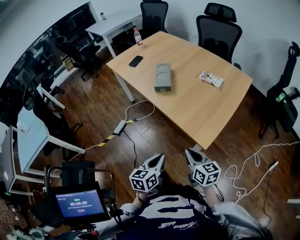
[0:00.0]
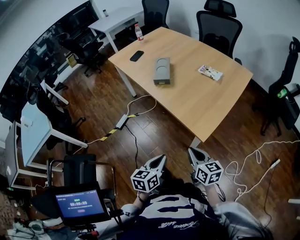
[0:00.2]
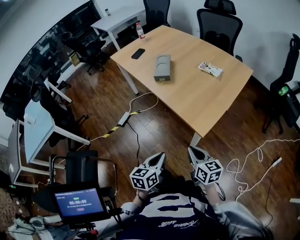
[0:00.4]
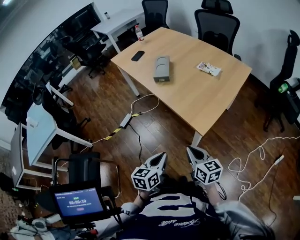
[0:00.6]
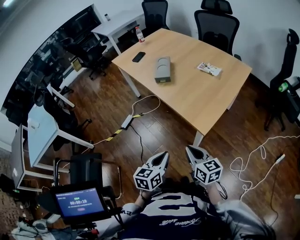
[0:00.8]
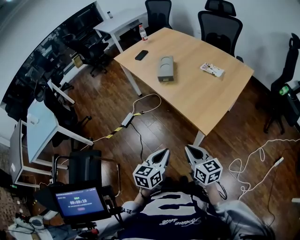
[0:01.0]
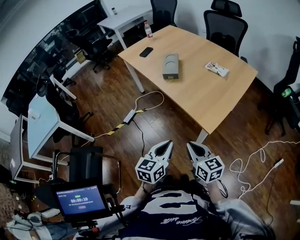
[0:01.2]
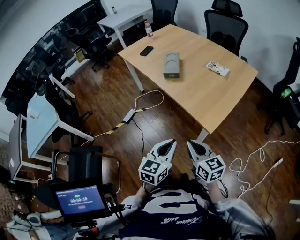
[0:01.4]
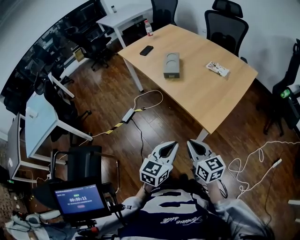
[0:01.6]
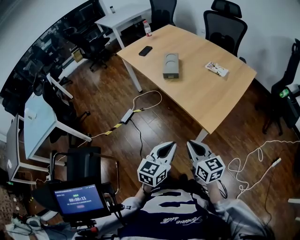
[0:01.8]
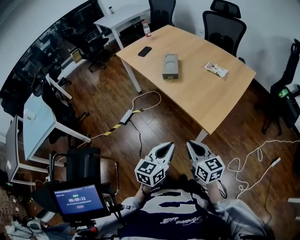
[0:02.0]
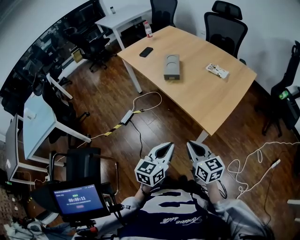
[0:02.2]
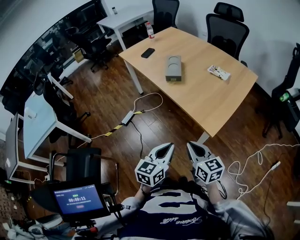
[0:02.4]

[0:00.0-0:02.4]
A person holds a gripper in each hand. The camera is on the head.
0:00.0 to 0:01.2: The left gripper heads upward and backward, covering roughly 10 cm, while the right gripper shifts about 5 cm backward.
0:01.2 to 0:02.4: The grippers stay close to where they were, moving slightly.

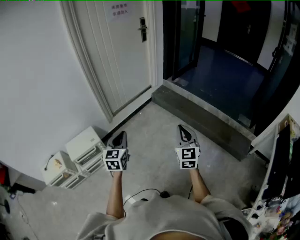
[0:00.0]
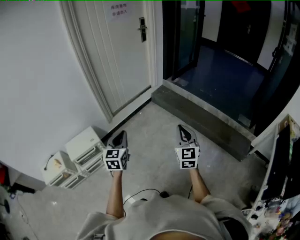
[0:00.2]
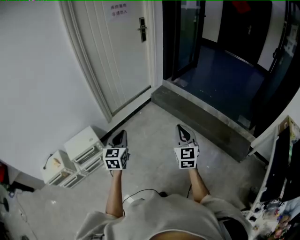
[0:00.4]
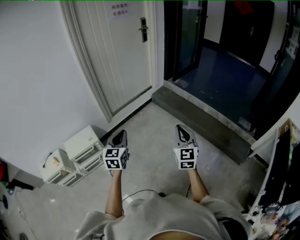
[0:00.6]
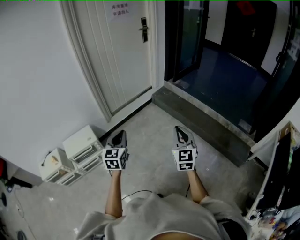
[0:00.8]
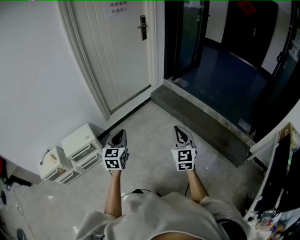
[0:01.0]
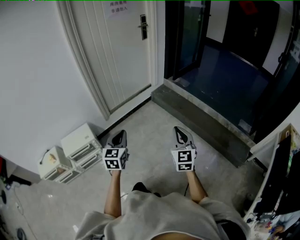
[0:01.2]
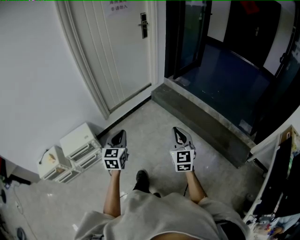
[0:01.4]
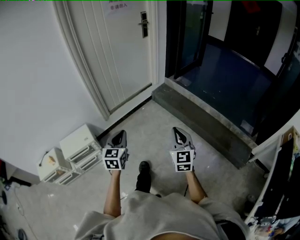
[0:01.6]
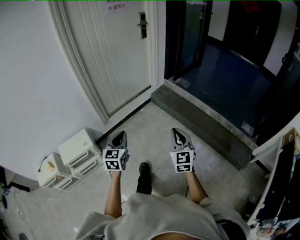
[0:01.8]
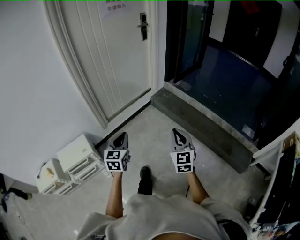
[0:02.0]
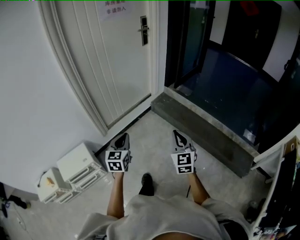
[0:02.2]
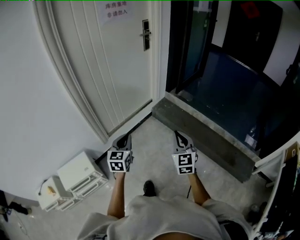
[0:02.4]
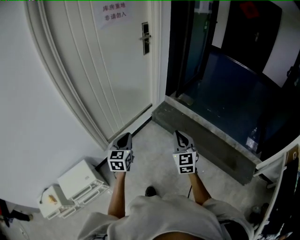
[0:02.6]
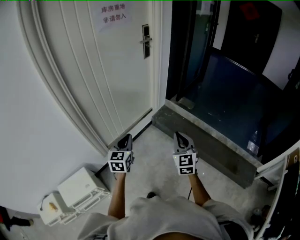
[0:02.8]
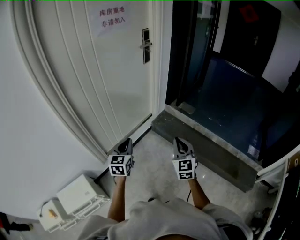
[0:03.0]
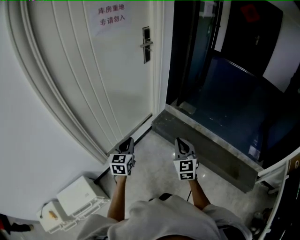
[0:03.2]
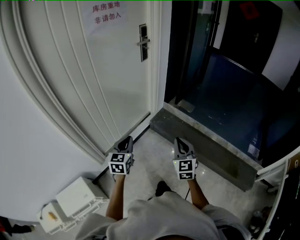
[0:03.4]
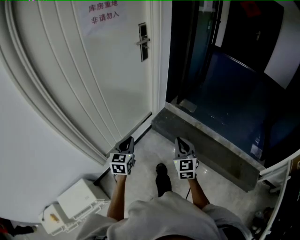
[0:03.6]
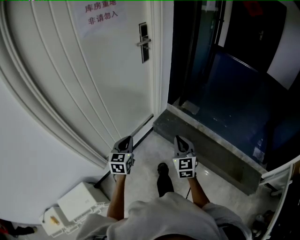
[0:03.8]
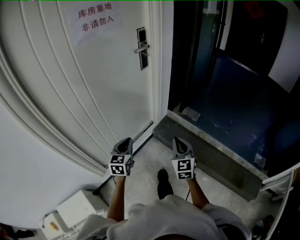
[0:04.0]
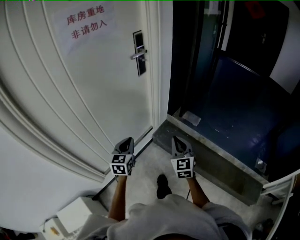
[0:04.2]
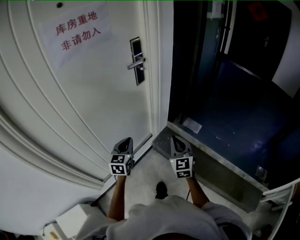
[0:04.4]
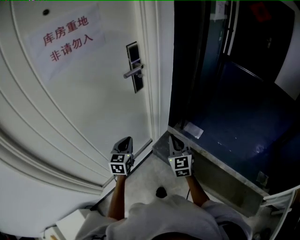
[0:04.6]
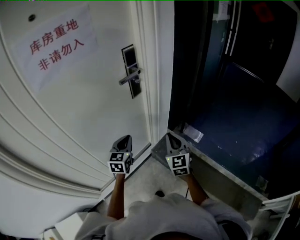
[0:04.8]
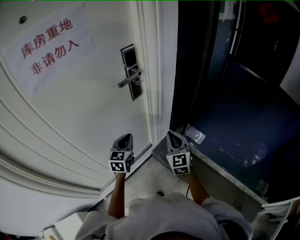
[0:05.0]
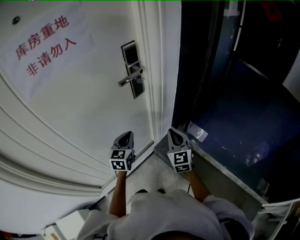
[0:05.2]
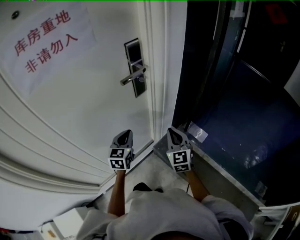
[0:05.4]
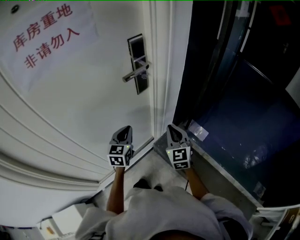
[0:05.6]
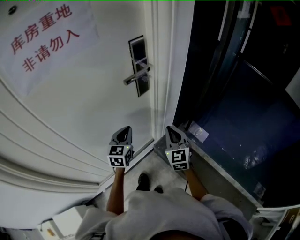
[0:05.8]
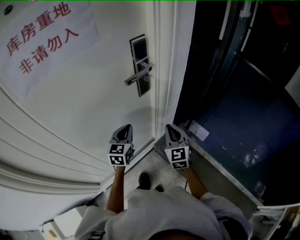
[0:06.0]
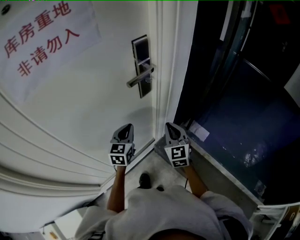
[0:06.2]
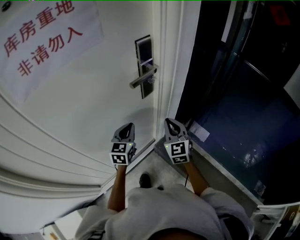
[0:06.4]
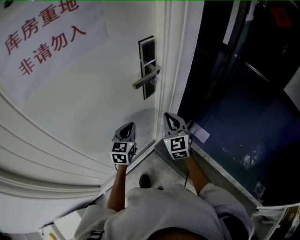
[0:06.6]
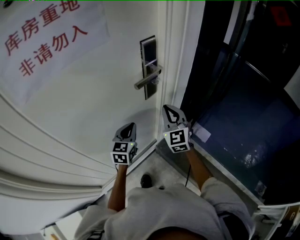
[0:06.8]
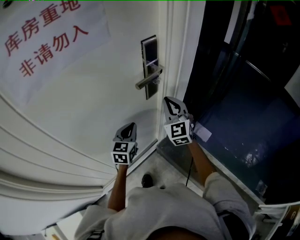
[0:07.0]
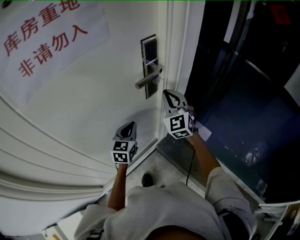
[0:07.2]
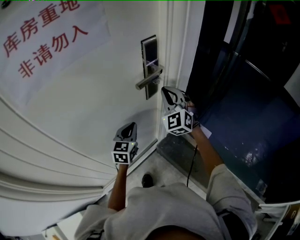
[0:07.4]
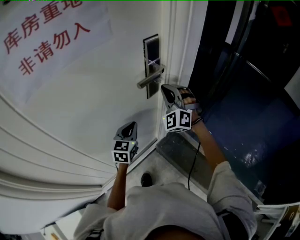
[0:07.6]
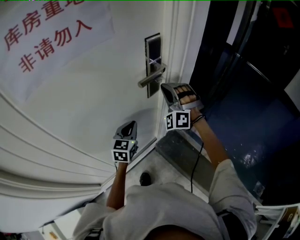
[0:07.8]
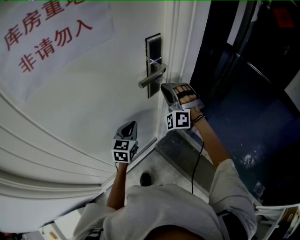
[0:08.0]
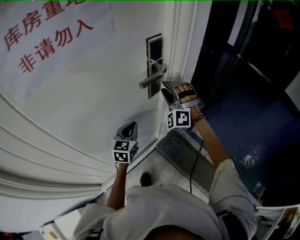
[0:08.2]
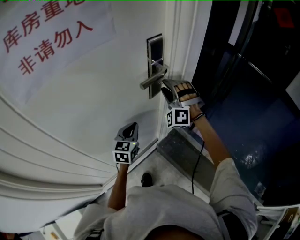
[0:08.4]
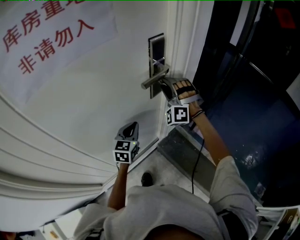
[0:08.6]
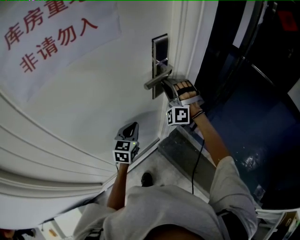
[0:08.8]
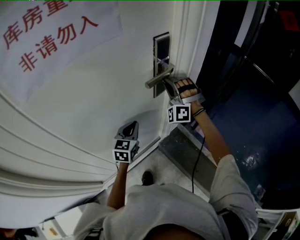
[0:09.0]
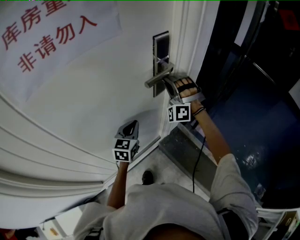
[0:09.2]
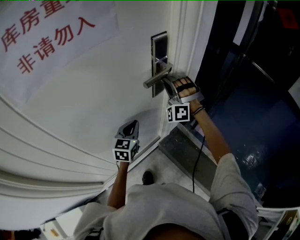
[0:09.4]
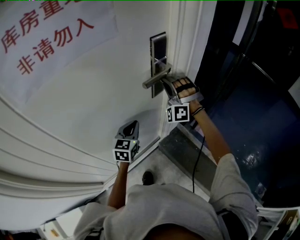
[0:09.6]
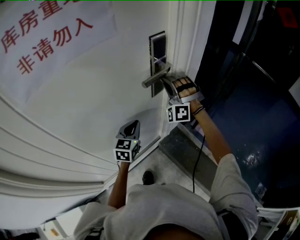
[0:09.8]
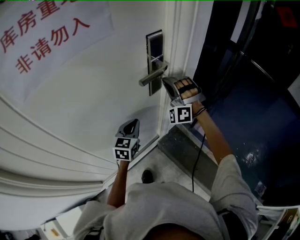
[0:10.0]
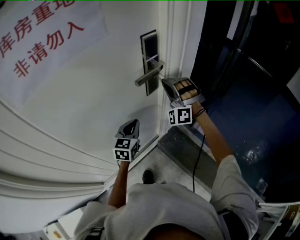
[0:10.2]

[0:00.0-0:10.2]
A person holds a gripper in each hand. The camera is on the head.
0:00.0 to 0:01.4: The right gripper shifts approximately 5 cm forward, while the left gripper shifts some 10 cm to the right and forward.
0:01.4 to 0:03.0: Both grippers are carried forward, roughly 50 cm.
0:03.0 to 0:04.4: The two grippers go approximately 40 cm forward.
0:04.4 to 0:05.8: The grippers both shift forward by about 25 cm.
0:05.8 to 0:07.2: The left gripper is displaced forward by roughly 5 cm. Meanwhile the right gripper travels forward, upward and to the left by approximately 20 cm, and rotates roughly 20 degrees.
0:07.2 to 0:08.8: The right gripper shifts about 5 cm forward, rolls counterclockwise, seen from behind, by about 50 degrees, and opens its fingers.
0:08.8 to 0:10.2: There are only small adjustments of the grippers.

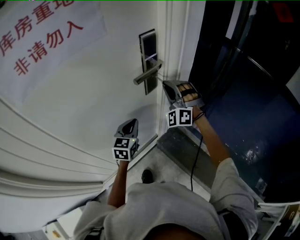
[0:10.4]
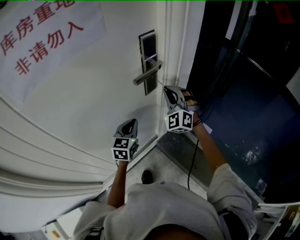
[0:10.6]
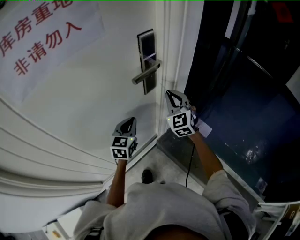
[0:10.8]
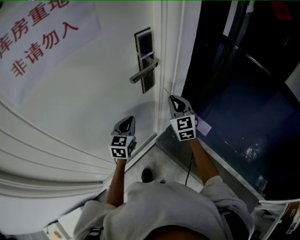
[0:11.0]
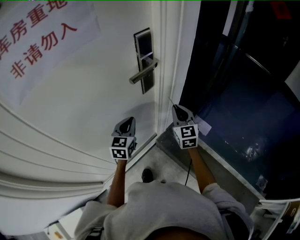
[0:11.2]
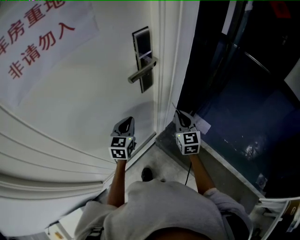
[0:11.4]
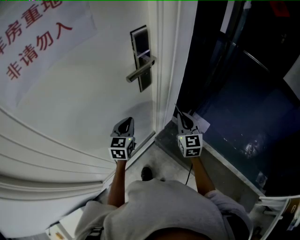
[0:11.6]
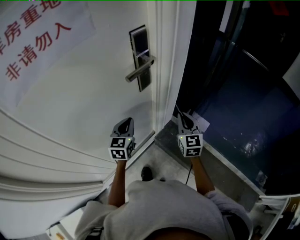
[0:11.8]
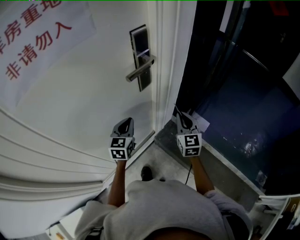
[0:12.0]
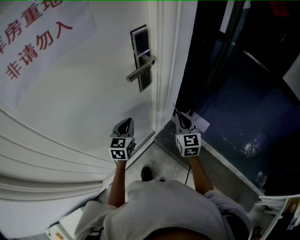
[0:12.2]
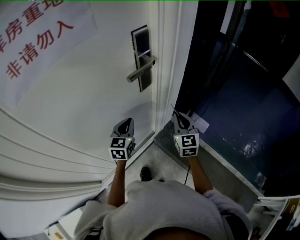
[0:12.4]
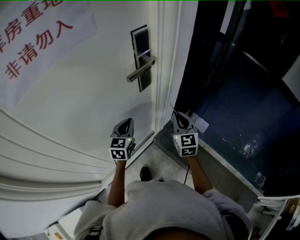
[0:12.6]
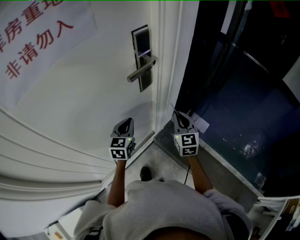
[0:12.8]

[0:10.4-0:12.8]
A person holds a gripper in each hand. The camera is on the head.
0:10.4 to 0:11.6: The right gripper moves to the right, backward and downward, about 15 cm, and rolls clockwise, seen from behind, by roughly 70 degrees.
0:11.6 to 0:12.8: The grippers make only small movements.

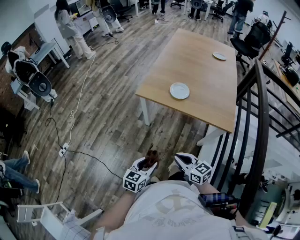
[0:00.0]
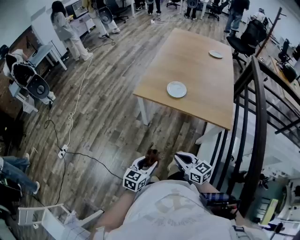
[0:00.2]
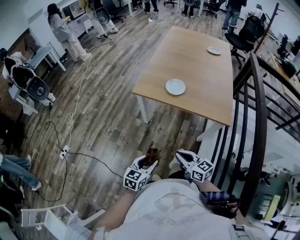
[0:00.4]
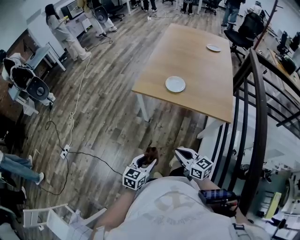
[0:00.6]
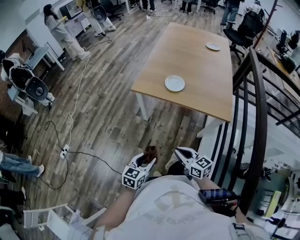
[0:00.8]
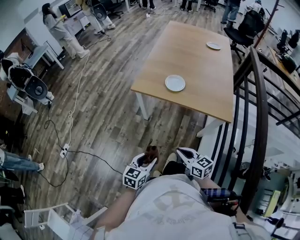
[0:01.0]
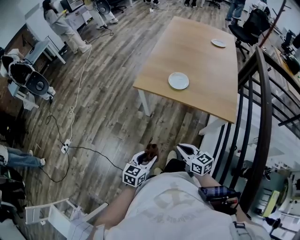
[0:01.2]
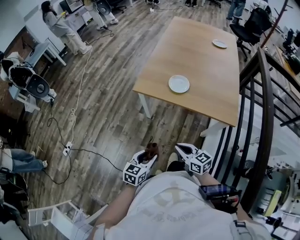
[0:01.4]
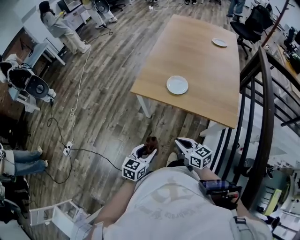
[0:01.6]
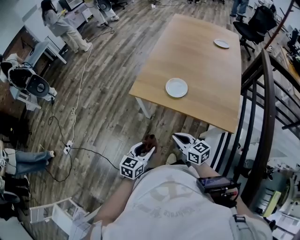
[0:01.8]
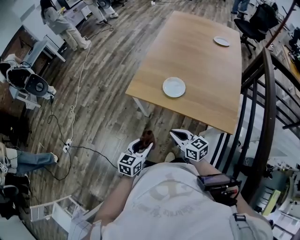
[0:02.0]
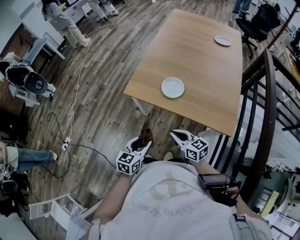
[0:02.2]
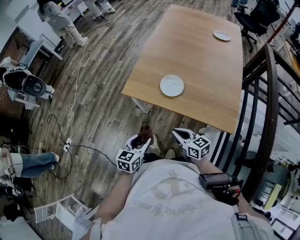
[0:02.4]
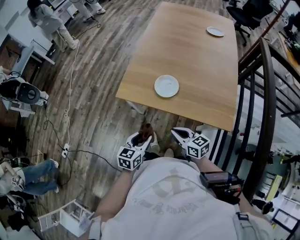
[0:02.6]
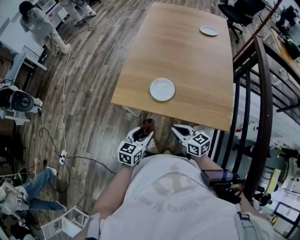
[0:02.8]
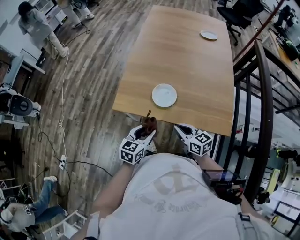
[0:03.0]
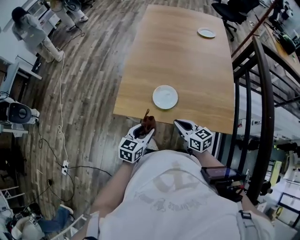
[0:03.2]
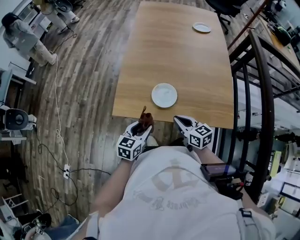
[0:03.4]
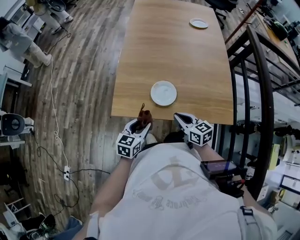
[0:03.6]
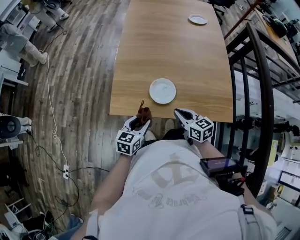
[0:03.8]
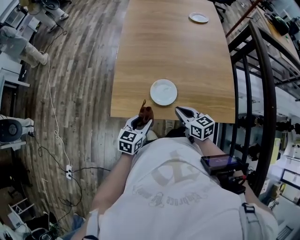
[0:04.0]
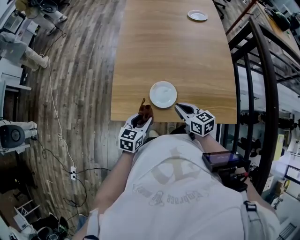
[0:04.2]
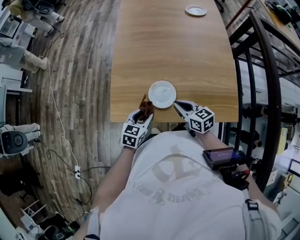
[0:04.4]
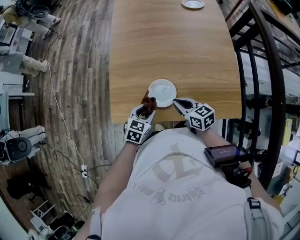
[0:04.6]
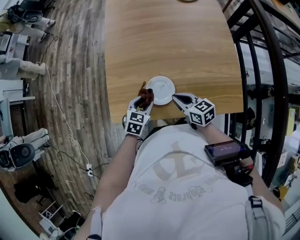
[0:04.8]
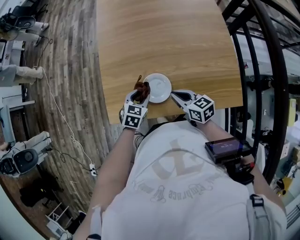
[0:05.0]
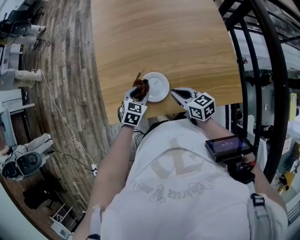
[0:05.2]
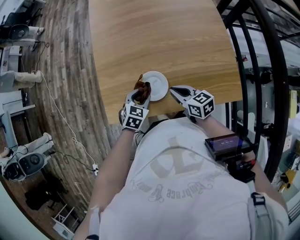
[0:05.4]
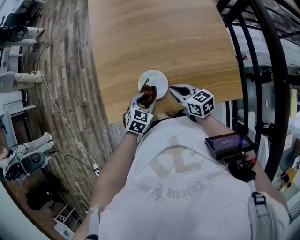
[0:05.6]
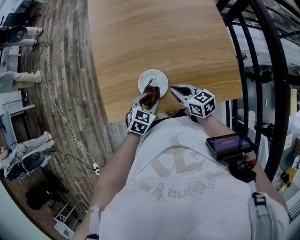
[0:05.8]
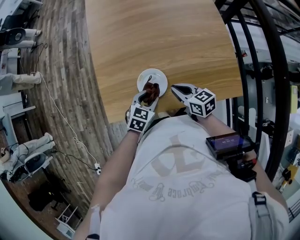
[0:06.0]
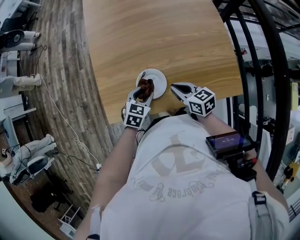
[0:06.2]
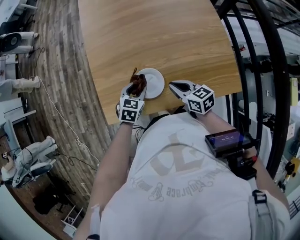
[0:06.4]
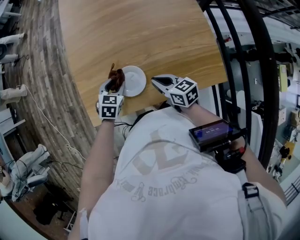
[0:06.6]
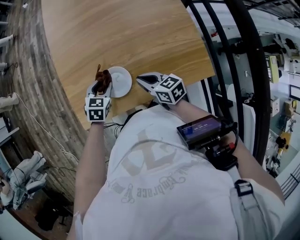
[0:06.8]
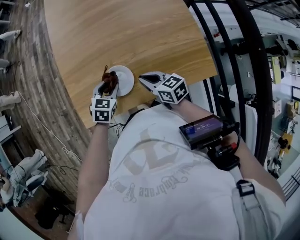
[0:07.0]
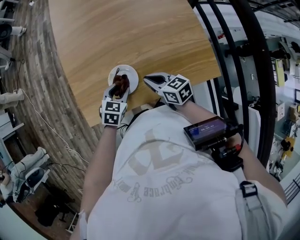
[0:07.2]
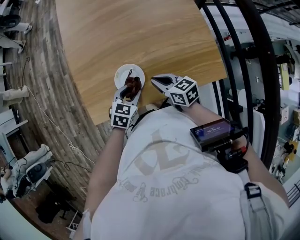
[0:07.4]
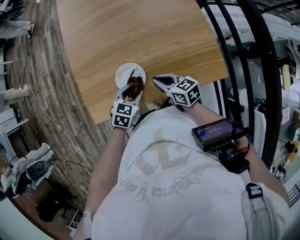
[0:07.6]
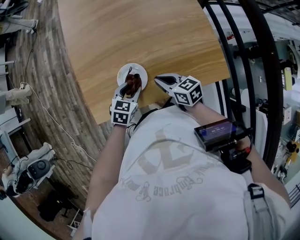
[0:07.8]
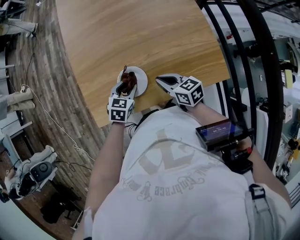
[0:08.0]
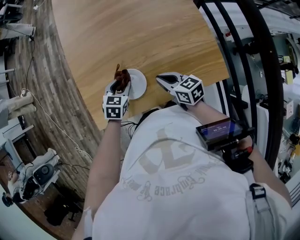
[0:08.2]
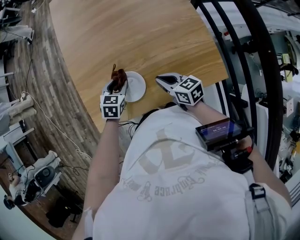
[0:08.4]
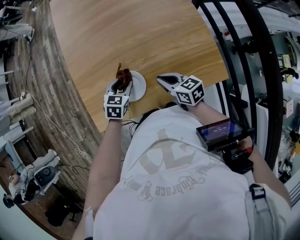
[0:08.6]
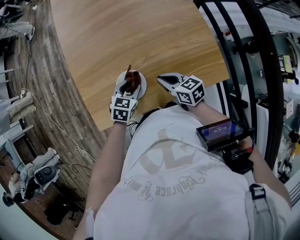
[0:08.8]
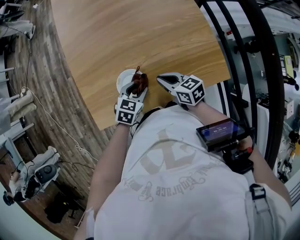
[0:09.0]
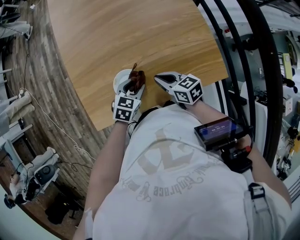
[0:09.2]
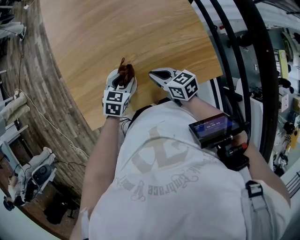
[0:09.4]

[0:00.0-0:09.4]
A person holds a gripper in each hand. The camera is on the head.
0:00.0 to 0:01.6: The two grippers go some 10 cm forward.
0:01.6 to 0:03.2: Both grippers travel together forward, some 25 cm.
0:03.2 to 0:04.8: The right gripper is displaced forward by roughly 10 cm. The left gripper goes about 15 cm forward and downward, and swivels approximately 30 degrees.
0:04.8 to 0:06.2: The left gripper shifts approximately 5 cm to the right.
0:07.8 to 0:09.4: The left gripper moves some 5 cm to the left and comes back.
